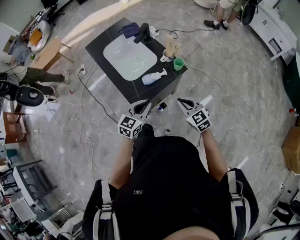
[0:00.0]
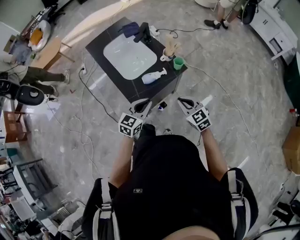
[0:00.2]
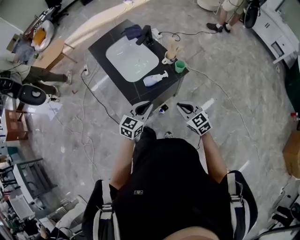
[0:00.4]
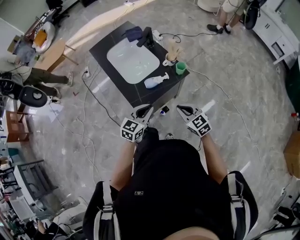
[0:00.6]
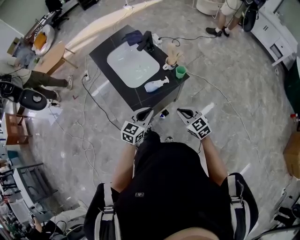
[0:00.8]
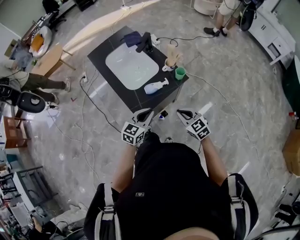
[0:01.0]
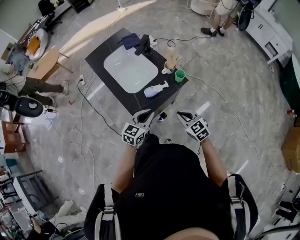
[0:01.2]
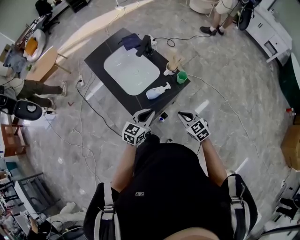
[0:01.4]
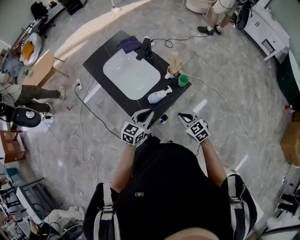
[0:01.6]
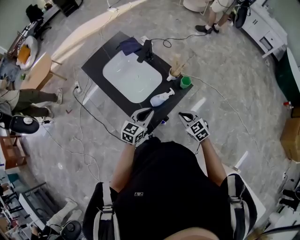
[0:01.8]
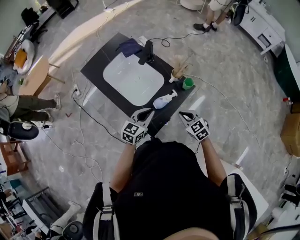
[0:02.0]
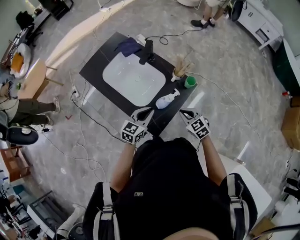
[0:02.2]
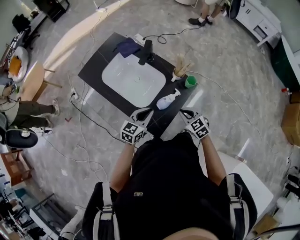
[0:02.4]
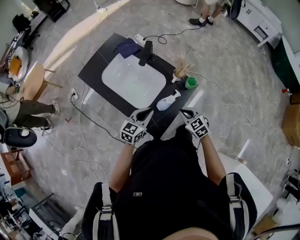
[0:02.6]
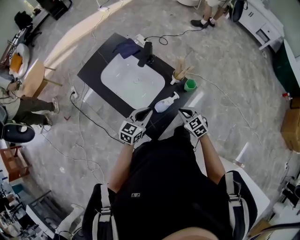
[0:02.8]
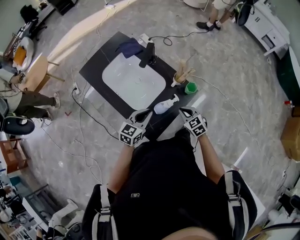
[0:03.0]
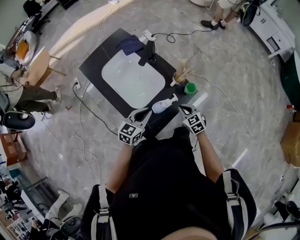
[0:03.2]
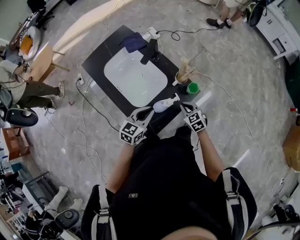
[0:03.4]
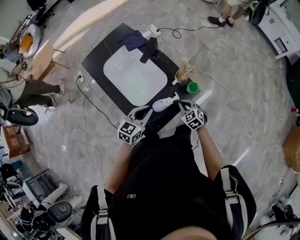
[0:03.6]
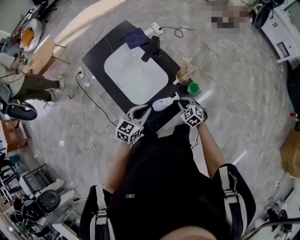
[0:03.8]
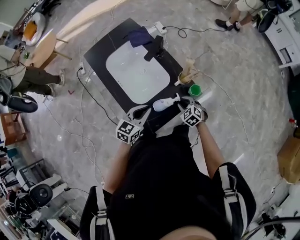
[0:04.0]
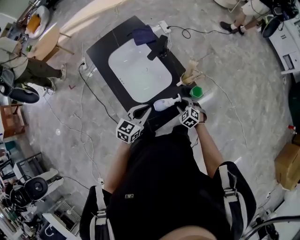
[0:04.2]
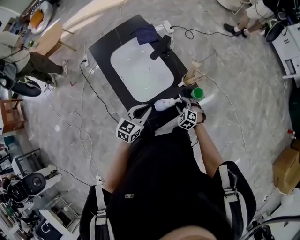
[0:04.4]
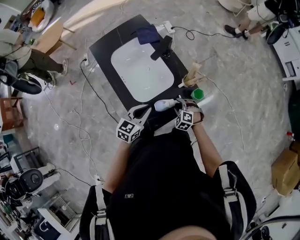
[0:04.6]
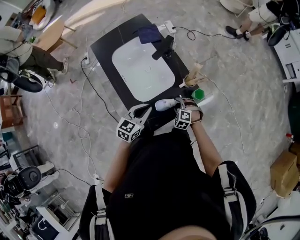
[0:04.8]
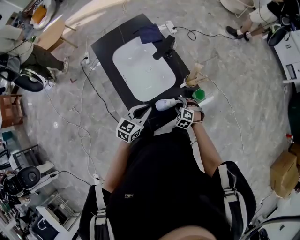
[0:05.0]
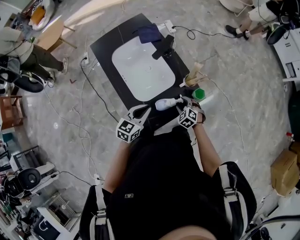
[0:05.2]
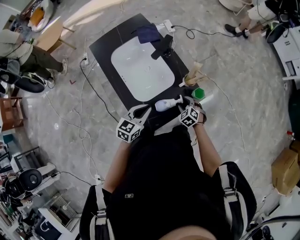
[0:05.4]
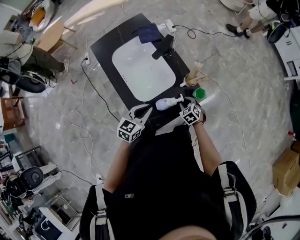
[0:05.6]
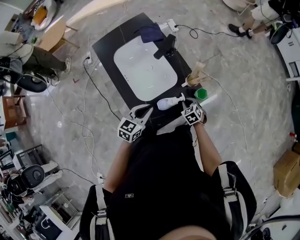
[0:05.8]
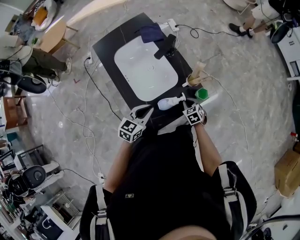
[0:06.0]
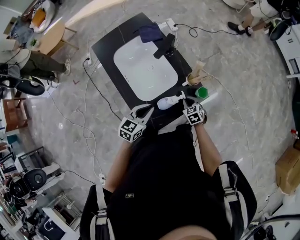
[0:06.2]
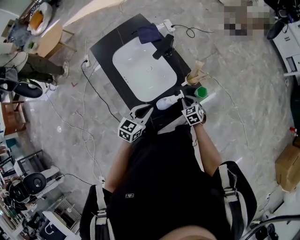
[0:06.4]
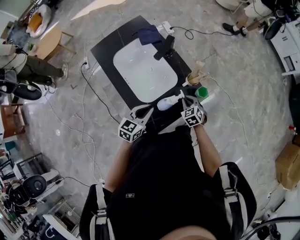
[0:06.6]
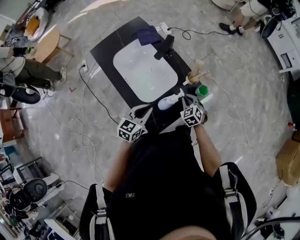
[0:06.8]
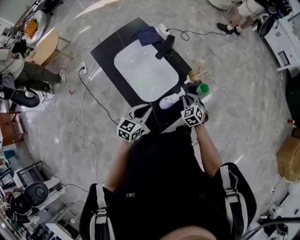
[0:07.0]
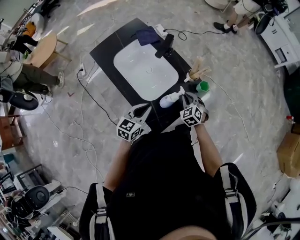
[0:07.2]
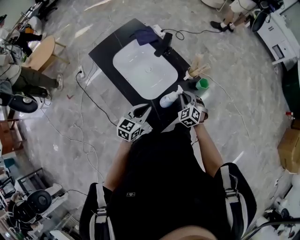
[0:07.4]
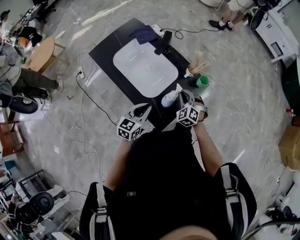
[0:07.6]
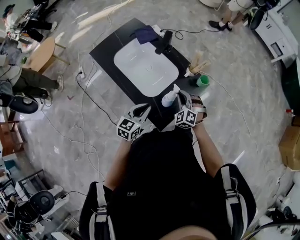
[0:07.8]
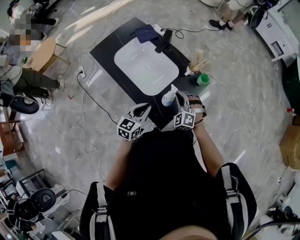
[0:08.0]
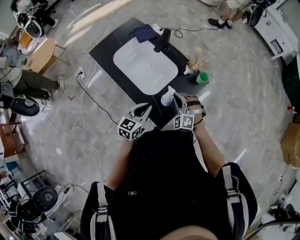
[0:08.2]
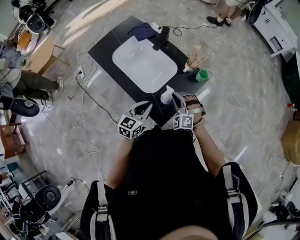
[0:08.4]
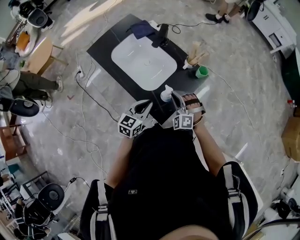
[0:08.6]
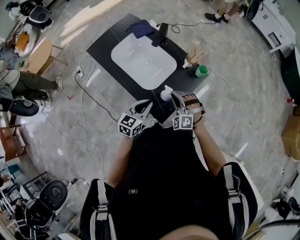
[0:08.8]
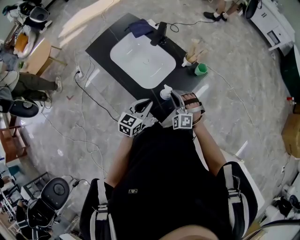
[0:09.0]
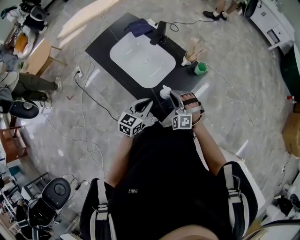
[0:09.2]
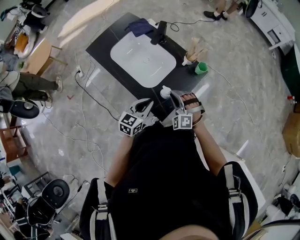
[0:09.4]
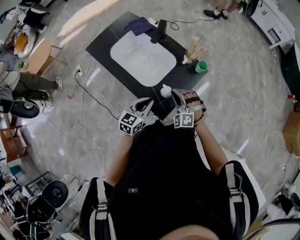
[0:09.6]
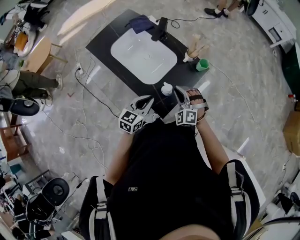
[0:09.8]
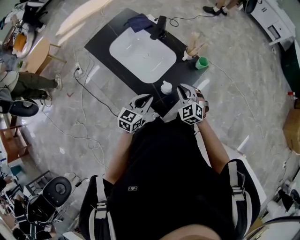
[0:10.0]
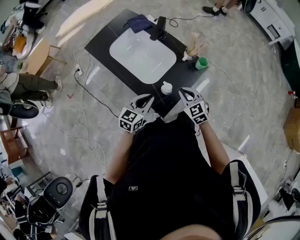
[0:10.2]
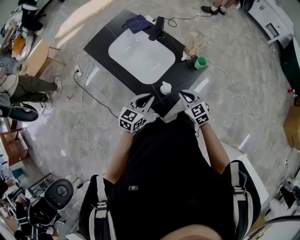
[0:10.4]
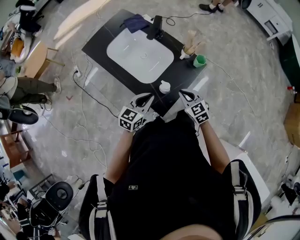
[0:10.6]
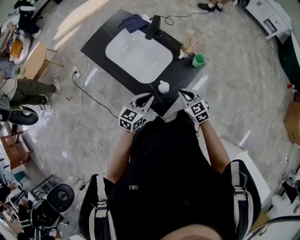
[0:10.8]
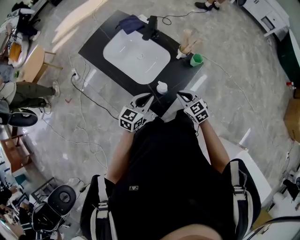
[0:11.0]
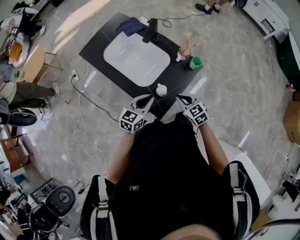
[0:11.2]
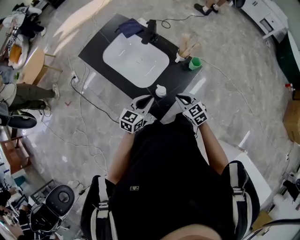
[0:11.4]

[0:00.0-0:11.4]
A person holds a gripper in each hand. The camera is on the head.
0:00.0 to 0:01.4: The left gripper is displaced forward by roughly 5 cm.
0:01.4 to 0:02.8: The left gripper goes about 15 cm forward and to the left, while the right gripper shifts approximately 15 cm forward, to the left and downward.
0:02.8 to 0:04.2: The right gripper goes approximately 15 cm downward and forward, changes its angle by about 30 degrees, and opens.
0:05.6 to 0:07.2: The left gripper heads to the left, covering about 5 cm. The right gripper is displaced upward by about 10 cm, rotates some 20 degrees, and closes up.
0:07.2 to 0:08.6: The right gripper goes about 15 cm backward, to the left and upward, and swivels about 40 degrees.
0:08.6 to 0:10.0: The right gripper swivels some 30 degrees.
0:10.0 to 0:11.4: The right gripper swivels some 30 degrees.

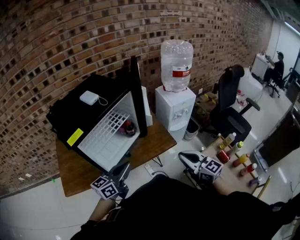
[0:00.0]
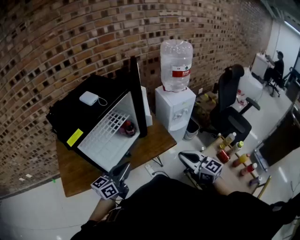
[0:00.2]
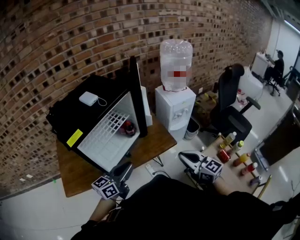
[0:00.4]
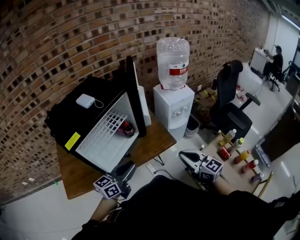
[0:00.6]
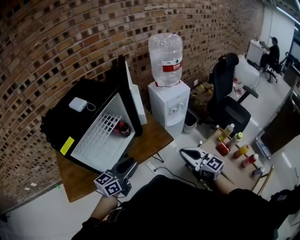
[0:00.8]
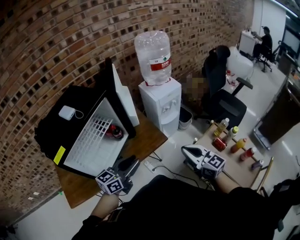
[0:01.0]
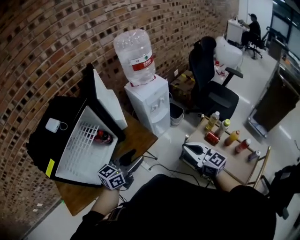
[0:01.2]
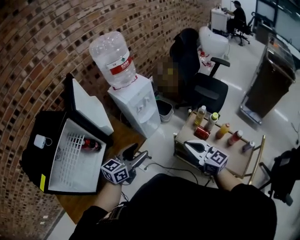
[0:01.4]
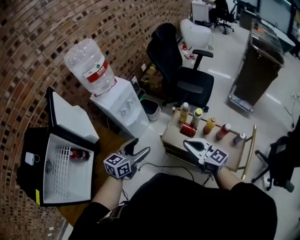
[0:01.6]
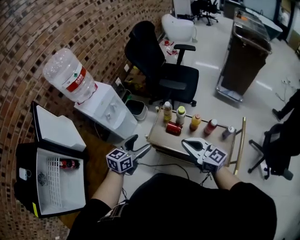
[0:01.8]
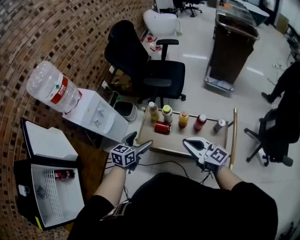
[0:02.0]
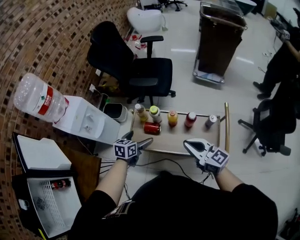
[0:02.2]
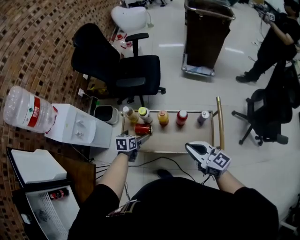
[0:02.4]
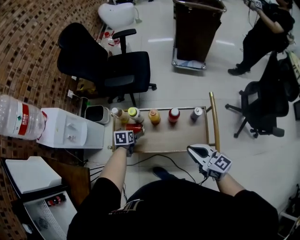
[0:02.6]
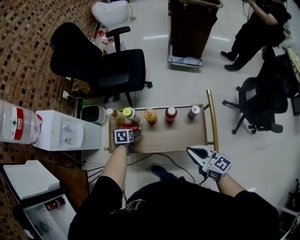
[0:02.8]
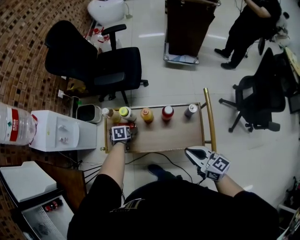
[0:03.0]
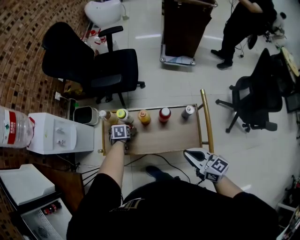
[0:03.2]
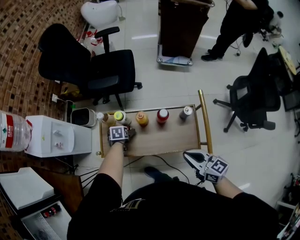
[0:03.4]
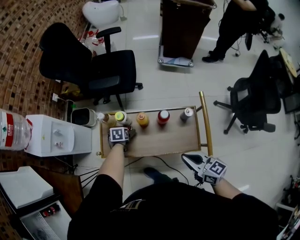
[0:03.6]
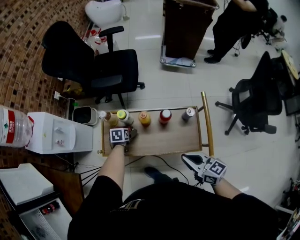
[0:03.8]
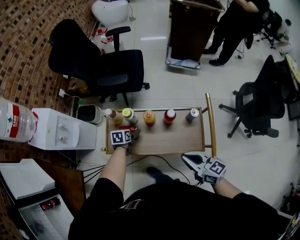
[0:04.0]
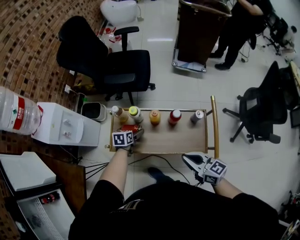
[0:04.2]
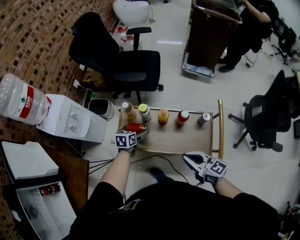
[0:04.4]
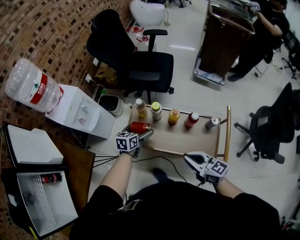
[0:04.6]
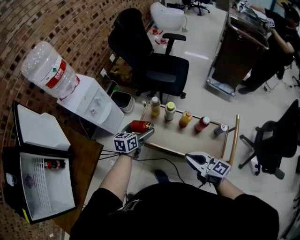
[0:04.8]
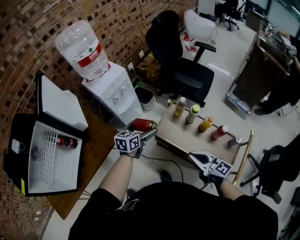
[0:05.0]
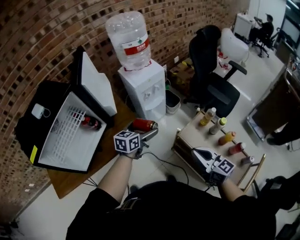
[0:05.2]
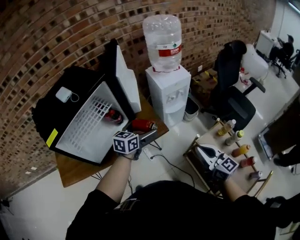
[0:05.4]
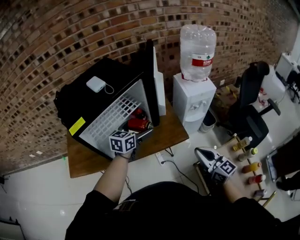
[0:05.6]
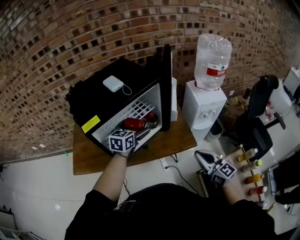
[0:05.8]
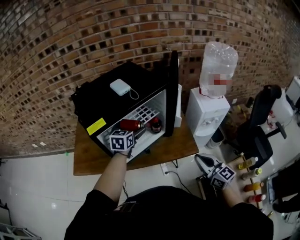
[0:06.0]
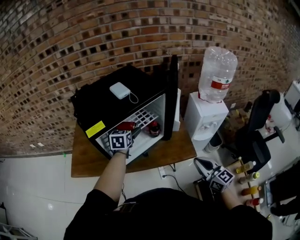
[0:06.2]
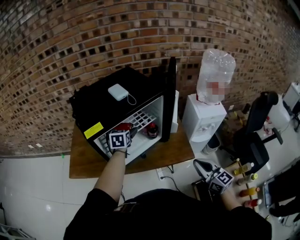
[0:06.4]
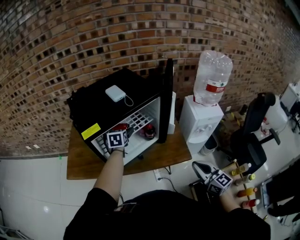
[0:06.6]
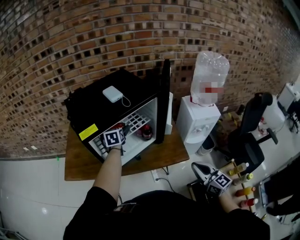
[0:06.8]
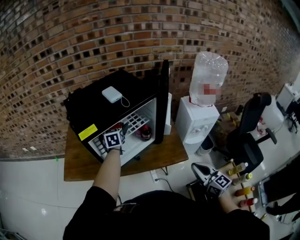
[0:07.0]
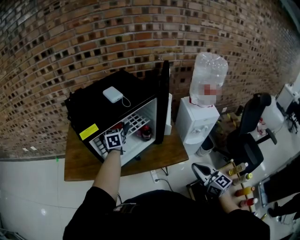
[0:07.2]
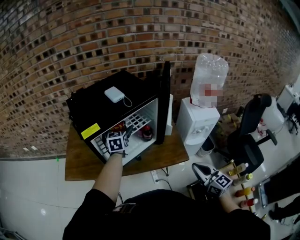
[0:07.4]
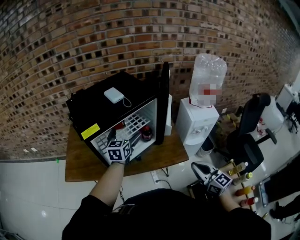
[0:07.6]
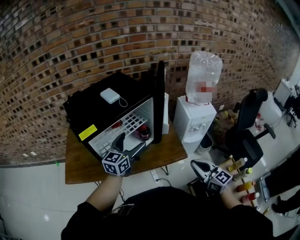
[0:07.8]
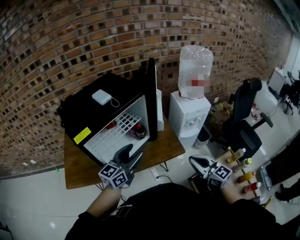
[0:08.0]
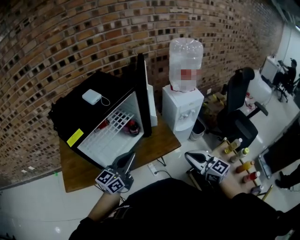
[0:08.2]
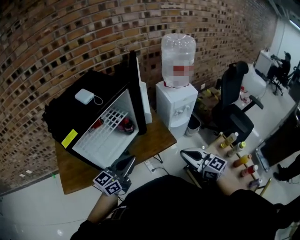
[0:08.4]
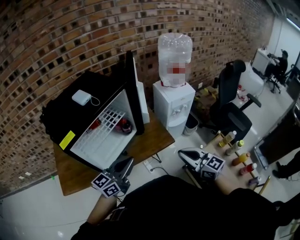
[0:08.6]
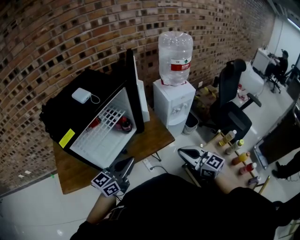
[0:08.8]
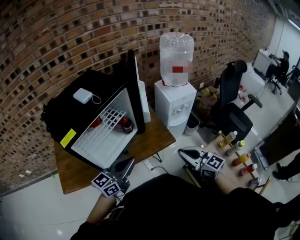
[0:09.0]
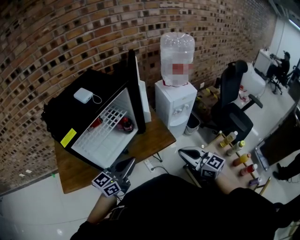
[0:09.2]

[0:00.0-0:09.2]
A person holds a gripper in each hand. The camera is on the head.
0:00.0 to 0:01.6: The left gripper shifts by roughly 40 cm, rotates approximately 40 degrees, and opens its fingers; the right gripper moves about 35 cm, and changes its angle by some 30 degrees.
0:01.6 to 0:03.0: The left gripper heads downward, to the right and forward, covering some 50 cm, tilts its fingers some 50 degrees downward, and opens. The right gripper travels to the right and downward by roughly 35 cm, and rotates about 40 degrees.
0:03.0 to 0:04.6: The right gripper travels to the left by approximately 10 cm. Meanwhile the left gripper goes approximately 15 cm upward, and changes its angle by approximately 30 degrees.
0:04.6 to 0:06.2: Both grippers are carried approximately 70 cm. The right gripper rotates about 60 degrees; the left gripper rotates about 80 degrees.
0:06.2 to 0:07.6: The left gripper travels backward by approximately 5 cm.
0:07.6 to 0:09.2: The left gripper goes roughly 25 cm backward and to the right, changes its angle by roughly 50 degrees, and closes its fingers.

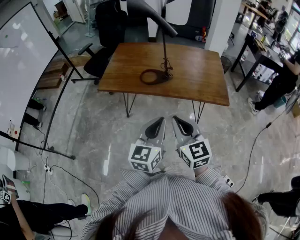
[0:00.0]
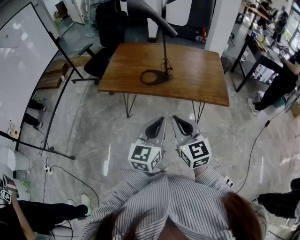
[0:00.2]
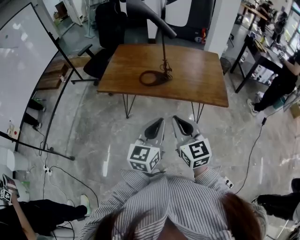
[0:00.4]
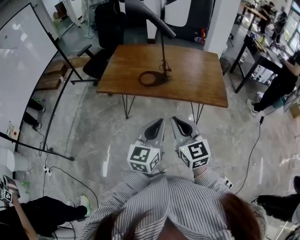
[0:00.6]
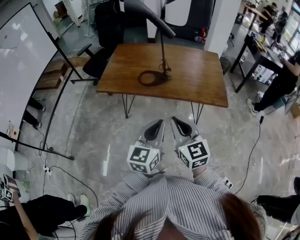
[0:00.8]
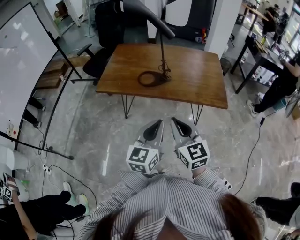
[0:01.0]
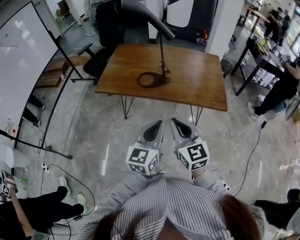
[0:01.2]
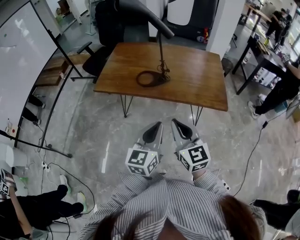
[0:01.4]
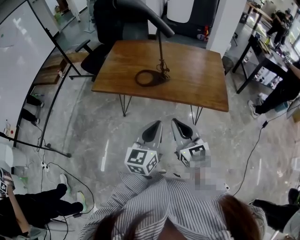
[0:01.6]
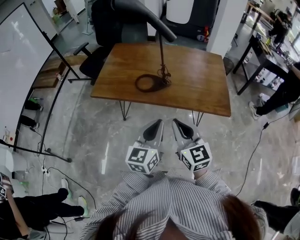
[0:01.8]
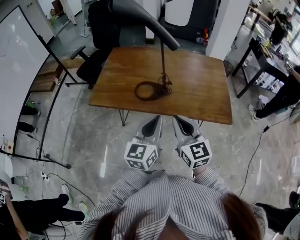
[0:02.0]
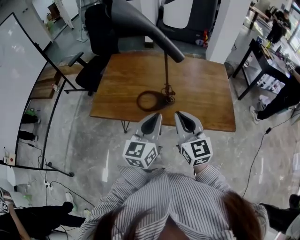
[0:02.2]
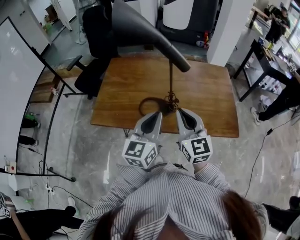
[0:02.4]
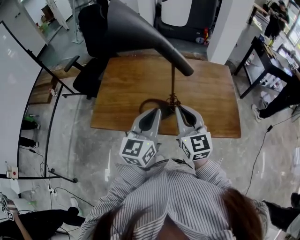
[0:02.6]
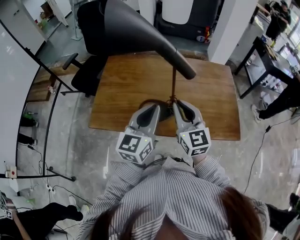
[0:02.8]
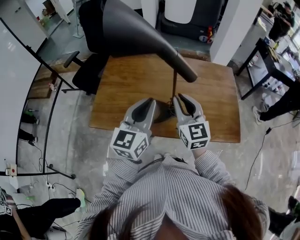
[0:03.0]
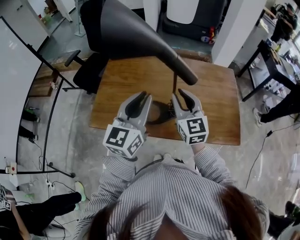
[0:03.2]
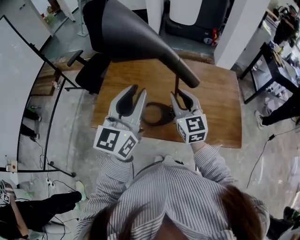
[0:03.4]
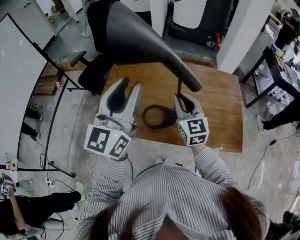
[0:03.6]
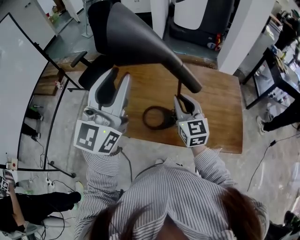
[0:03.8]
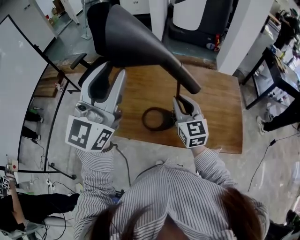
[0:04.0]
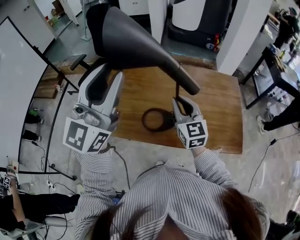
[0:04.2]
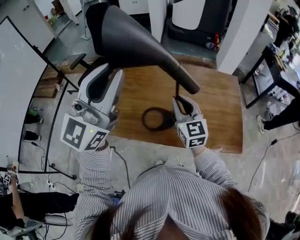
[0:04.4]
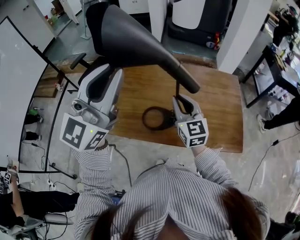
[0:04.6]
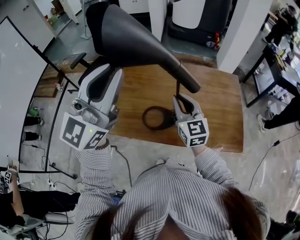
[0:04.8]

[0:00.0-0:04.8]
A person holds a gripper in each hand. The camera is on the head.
0:00.0 to 0:01.6: The right gripper ends up about 5 cm from where it was; the left gripper shifts by approximately 5 cm.
0:01.6 to 0:03.2: Both grippers move forward, approximately 35 cm.
0:03.2 to 0:04.8: The left gripper heads upward, covering some 15 cm, and swivels about 30 degrees.
